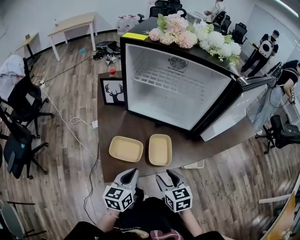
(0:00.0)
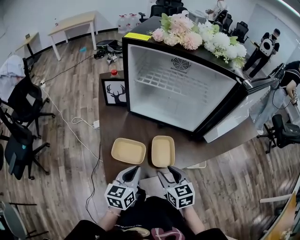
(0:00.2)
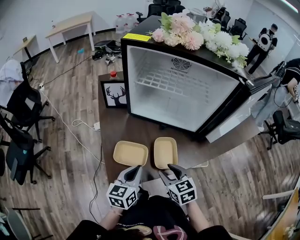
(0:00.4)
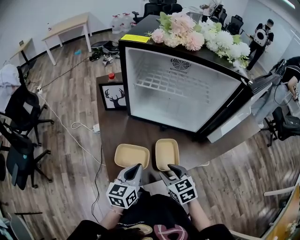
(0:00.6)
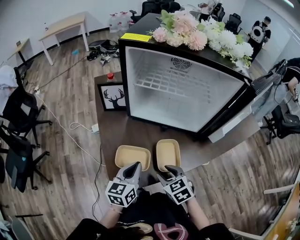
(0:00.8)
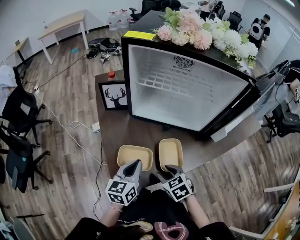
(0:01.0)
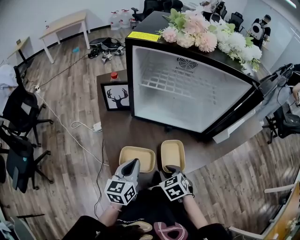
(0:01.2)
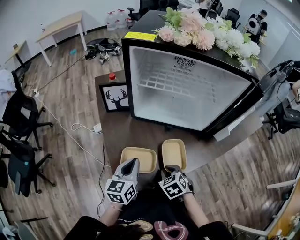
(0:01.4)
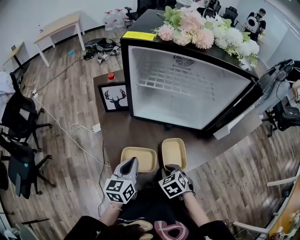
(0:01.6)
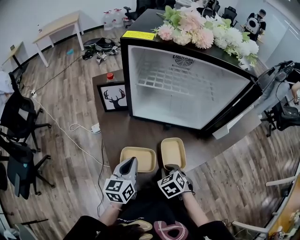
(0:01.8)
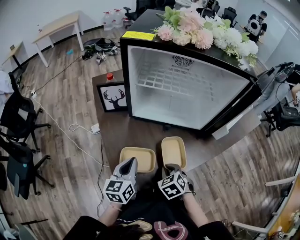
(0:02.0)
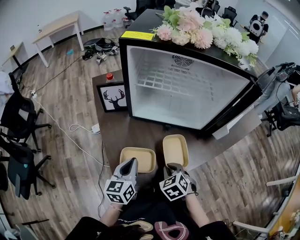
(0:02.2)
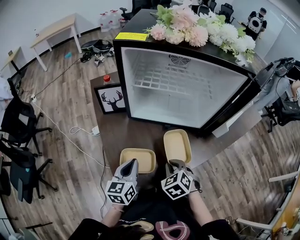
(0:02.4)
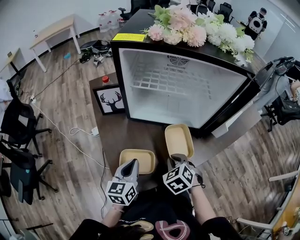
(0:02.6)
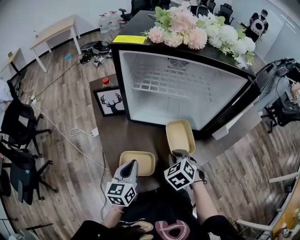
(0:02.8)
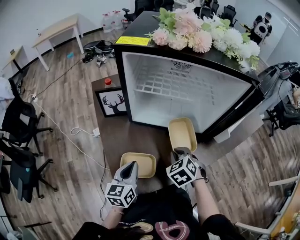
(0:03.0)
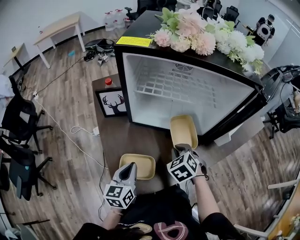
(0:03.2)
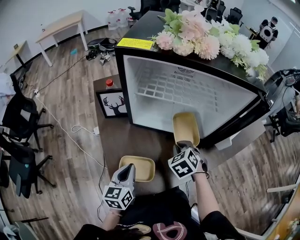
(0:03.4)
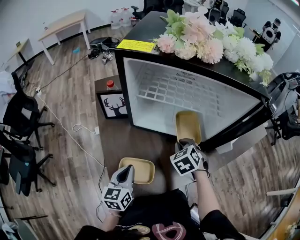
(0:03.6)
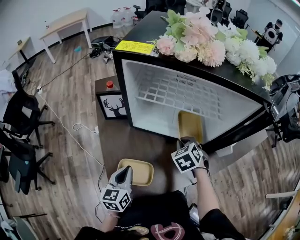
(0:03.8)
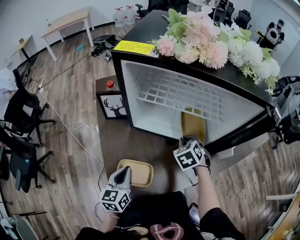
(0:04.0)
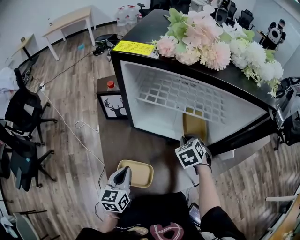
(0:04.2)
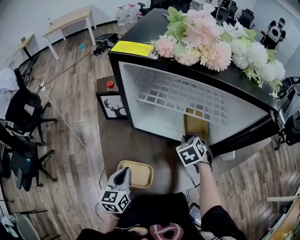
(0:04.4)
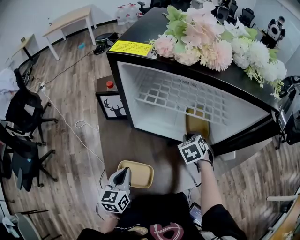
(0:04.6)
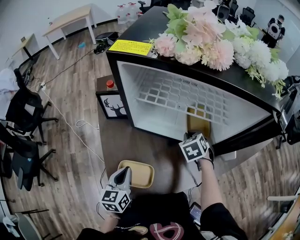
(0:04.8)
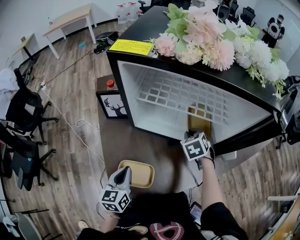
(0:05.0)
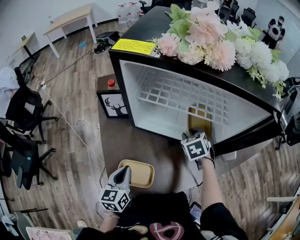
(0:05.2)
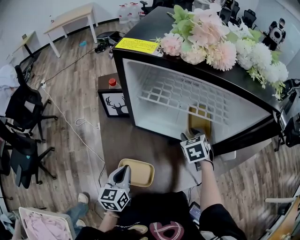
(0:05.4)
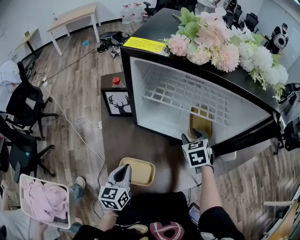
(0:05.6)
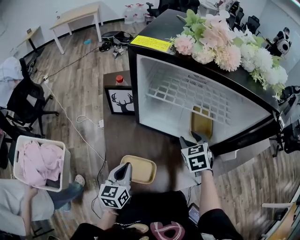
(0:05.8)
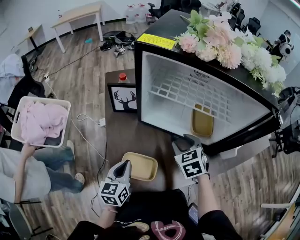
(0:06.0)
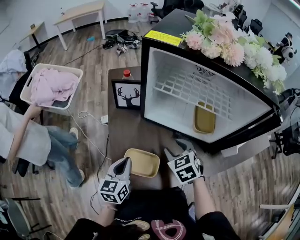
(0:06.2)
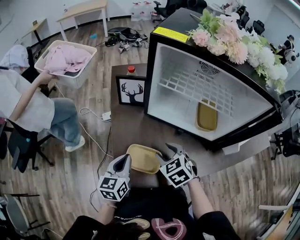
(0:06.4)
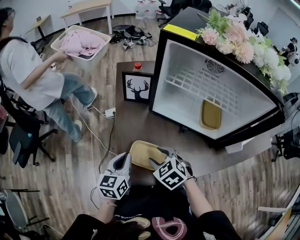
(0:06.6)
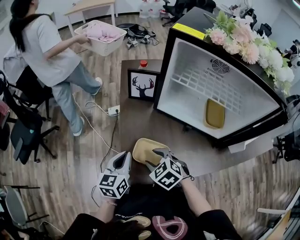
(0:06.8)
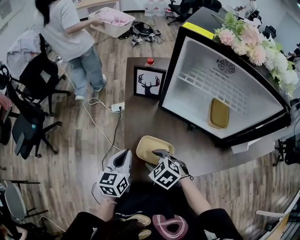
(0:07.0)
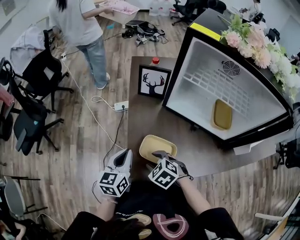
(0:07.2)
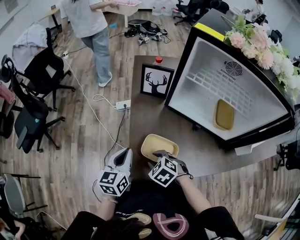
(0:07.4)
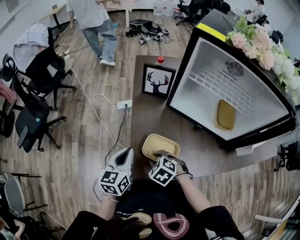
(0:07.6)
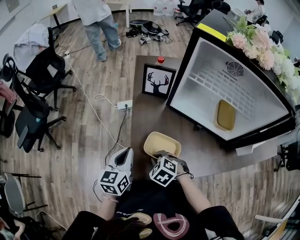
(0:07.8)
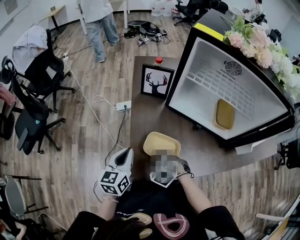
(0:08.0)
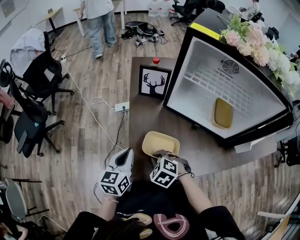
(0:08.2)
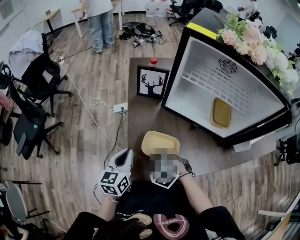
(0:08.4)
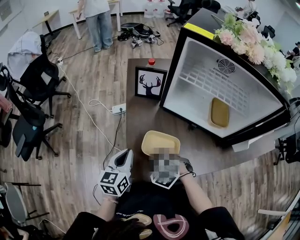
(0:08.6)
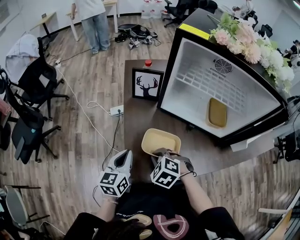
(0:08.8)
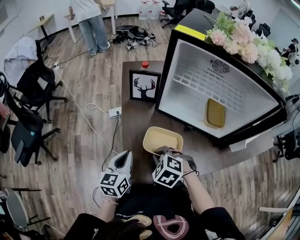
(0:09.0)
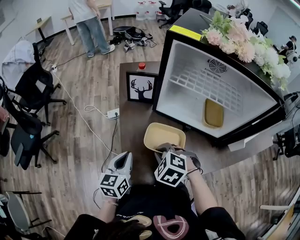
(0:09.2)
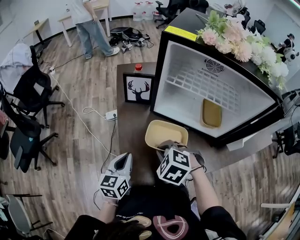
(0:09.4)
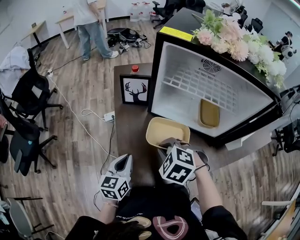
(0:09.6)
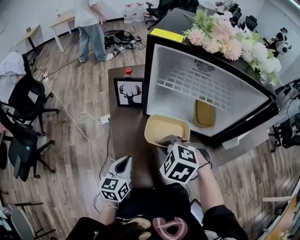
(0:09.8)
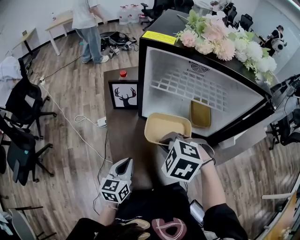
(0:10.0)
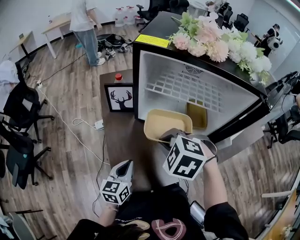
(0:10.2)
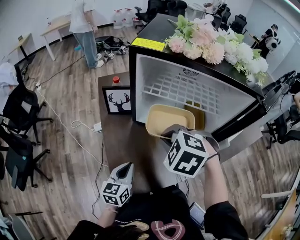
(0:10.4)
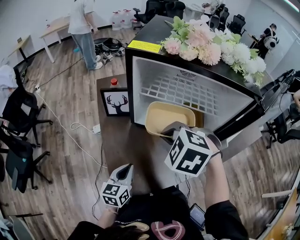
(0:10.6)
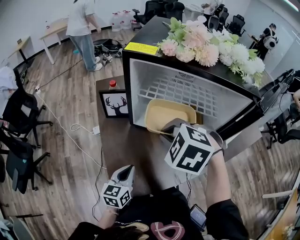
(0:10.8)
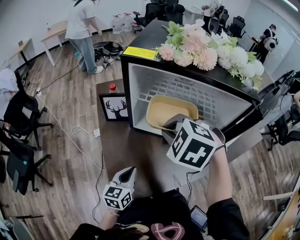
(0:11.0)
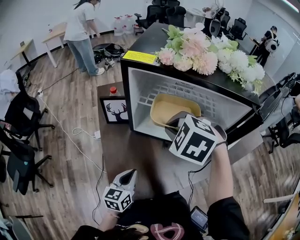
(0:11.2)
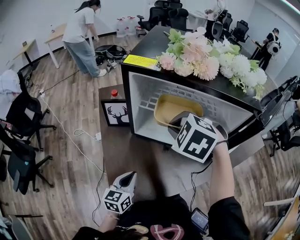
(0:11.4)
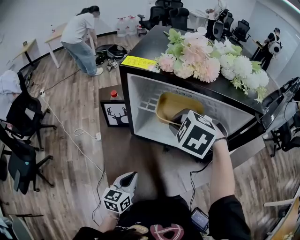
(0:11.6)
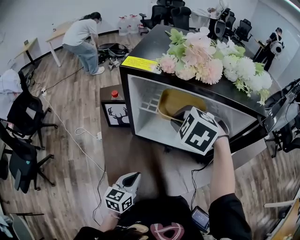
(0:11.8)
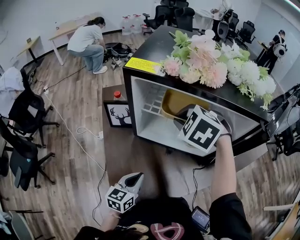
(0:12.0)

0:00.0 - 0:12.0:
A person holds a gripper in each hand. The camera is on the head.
0:00.0 - 0:01.6: The left gripper heads forward and to the left, covering about 15 cm, while the right gripper travels downward, forward and to the left by about 10 cm, changes its angle by roughly 30 degrees, and closes.
0:01.6 - 0:03.0: The right gripper goes roughly 10 cm forward and upward.
0:03.0 - 0:04.4: The right gripper is displaced forward by roughly 15 cm.
0:04.4 - 0:06.0: The right gripper heads to the left and backward, covering approximately 10 cm, and opens.
0:06.0 - 0:07.6: The right gripper moves roughly 30 cm, and turns by about 40 degrees. The left gripper shifts by roughly 10 cm.
0:07.6 - 0:09.0: The right gripper travels upward by approximately 10 cm, and closes up.
0:09.0 - 0:10.4: The right gripper goes approximately 20 cm upward and to the right. The left gripper moves to the right, about 10 cm.
0:10.4 - 0:12.0: The left gripper is displaced to the right by roughly 5 cm. Meanwhile the right gripper shifts about 15 cm forward and to the right.

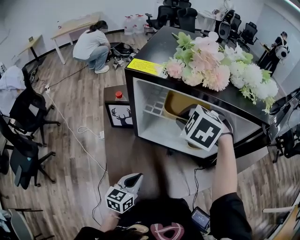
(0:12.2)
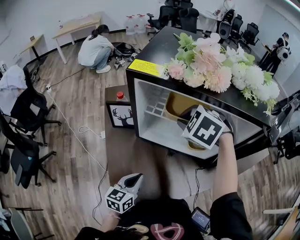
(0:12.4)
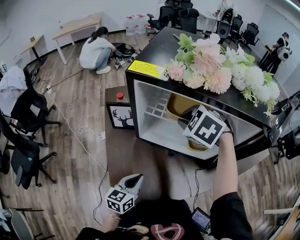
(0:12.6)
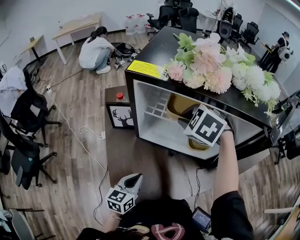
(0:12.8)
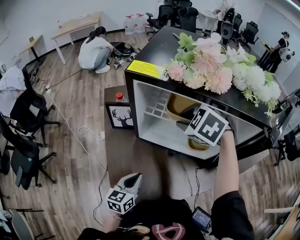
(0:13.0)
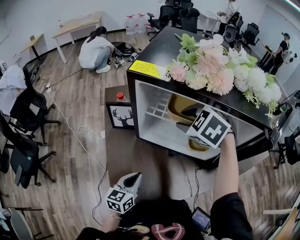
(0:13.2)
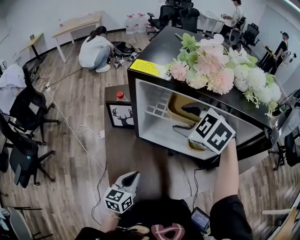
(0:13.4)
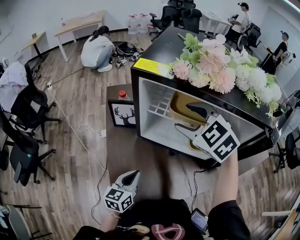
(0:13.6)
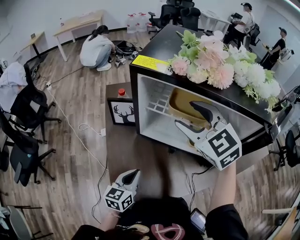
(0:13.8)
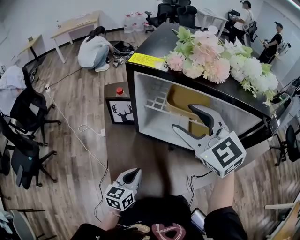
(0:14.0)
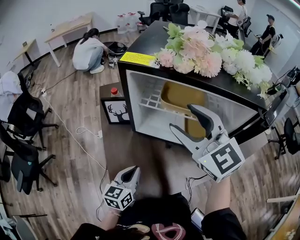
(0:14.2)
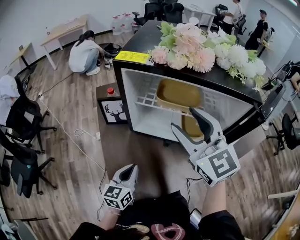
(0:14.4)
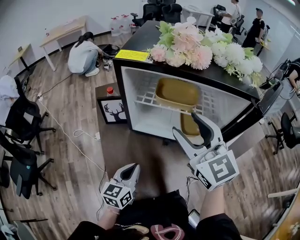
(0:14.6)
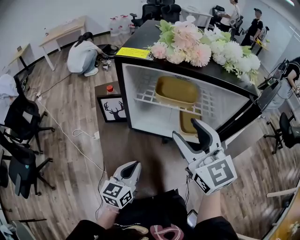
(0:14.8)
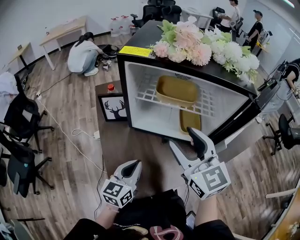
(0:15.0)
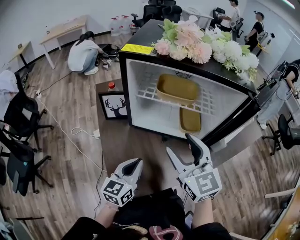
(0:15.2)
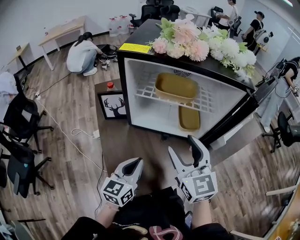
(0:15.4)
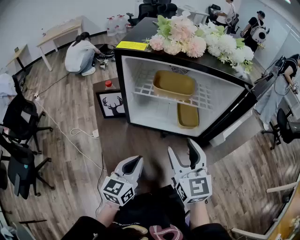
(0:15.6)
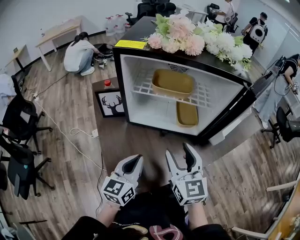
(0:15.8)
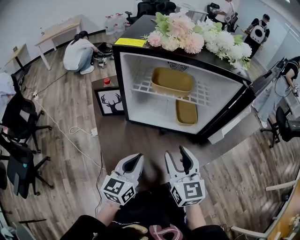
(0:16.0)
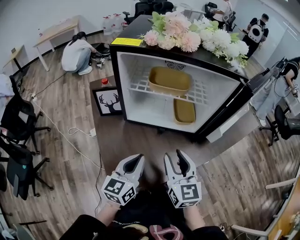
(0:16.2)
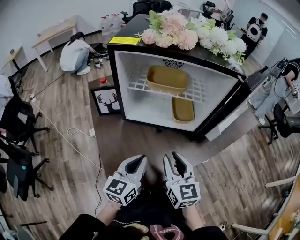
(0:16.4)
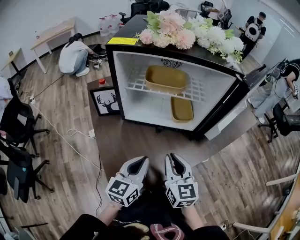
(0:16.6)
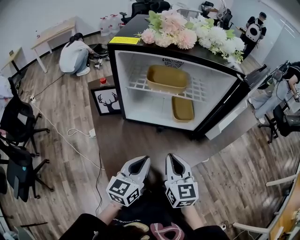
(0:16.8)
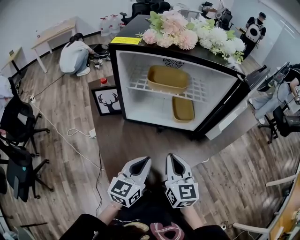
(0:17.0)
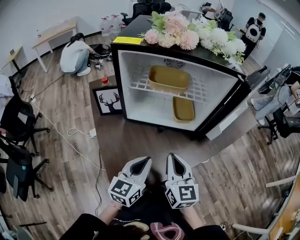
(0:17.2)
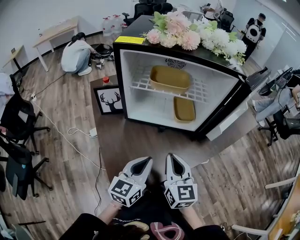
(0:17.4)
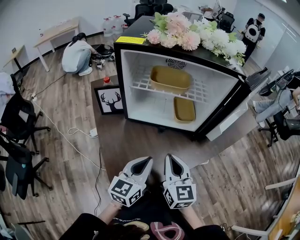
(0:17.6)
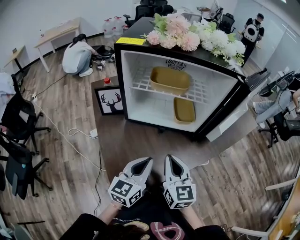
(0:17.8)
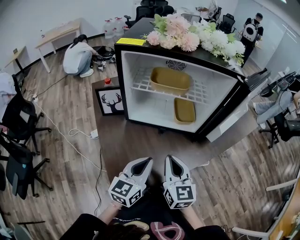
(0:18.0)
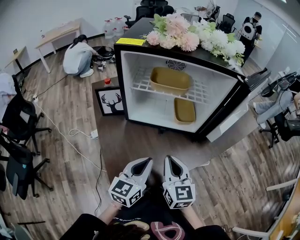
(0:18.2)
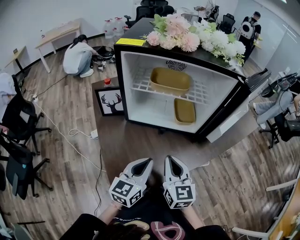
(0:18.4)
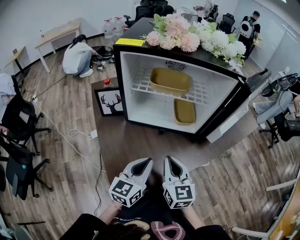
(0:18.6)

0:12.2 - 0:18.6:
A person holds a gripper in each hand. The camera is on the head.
0:12.2 - 0:13.8: The right gripper moves upward, about 5 cm, angles its fingers upward, by roughly 40 degrees, and opens.
0:13.8 - 0:15.4: The right gripper moves backward and downward, about 15 cm, and rotates approximately 30 degrees. Meanwhile the left gripper is displaced upward by some 5 cm.
0:15.4 - 0:17.0: The left gripper ends up about 5 cm from where it was; the right gripper moves downward and backward, approximately 10 cm, and closes up.
0:17.0 - 0:18.6: There are only small adjustments of the grippers.

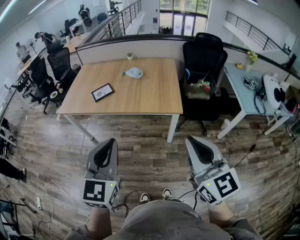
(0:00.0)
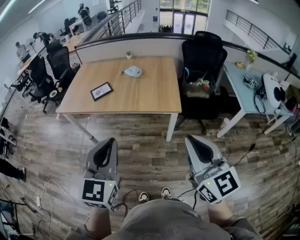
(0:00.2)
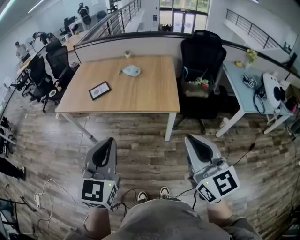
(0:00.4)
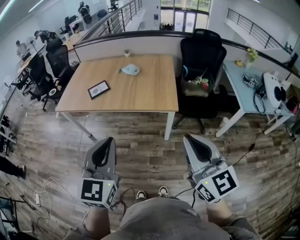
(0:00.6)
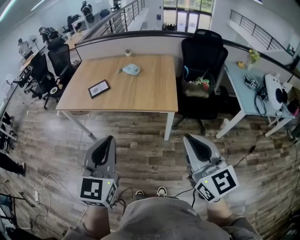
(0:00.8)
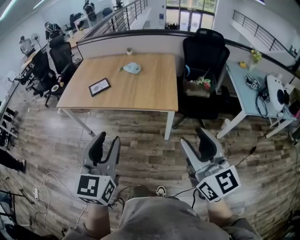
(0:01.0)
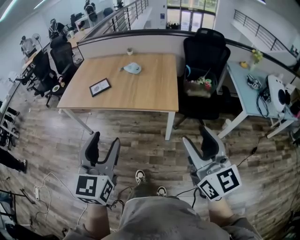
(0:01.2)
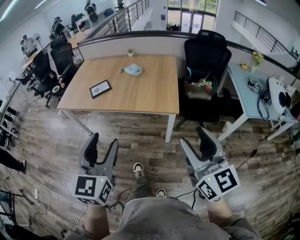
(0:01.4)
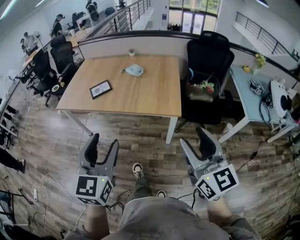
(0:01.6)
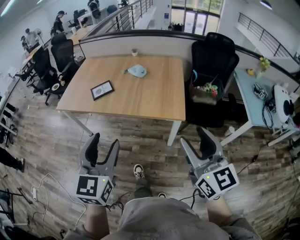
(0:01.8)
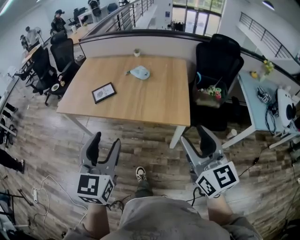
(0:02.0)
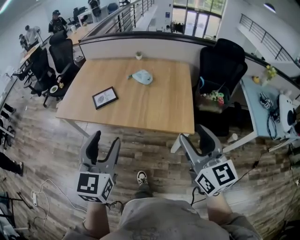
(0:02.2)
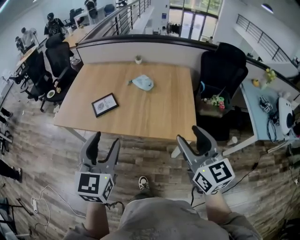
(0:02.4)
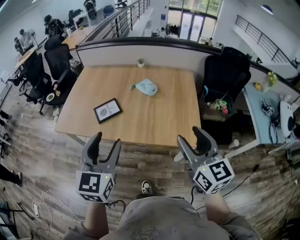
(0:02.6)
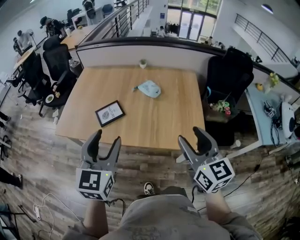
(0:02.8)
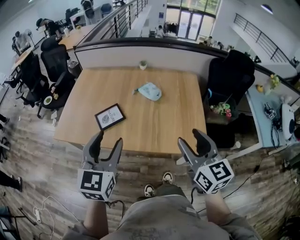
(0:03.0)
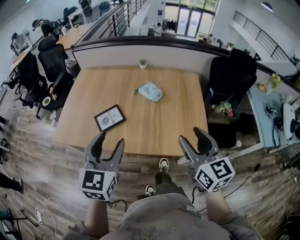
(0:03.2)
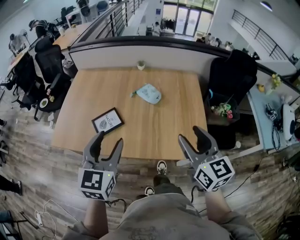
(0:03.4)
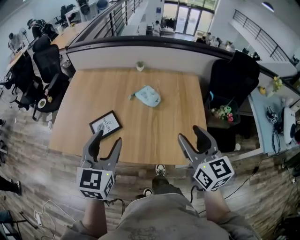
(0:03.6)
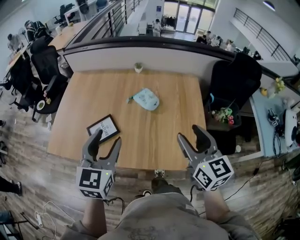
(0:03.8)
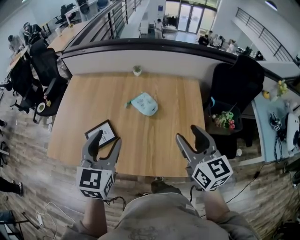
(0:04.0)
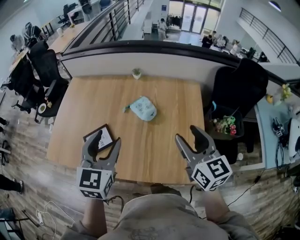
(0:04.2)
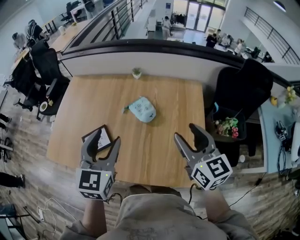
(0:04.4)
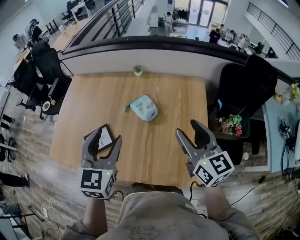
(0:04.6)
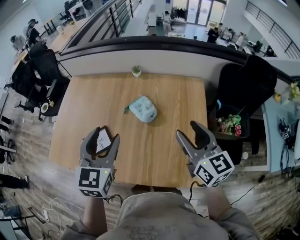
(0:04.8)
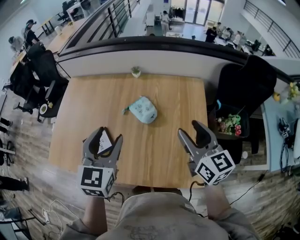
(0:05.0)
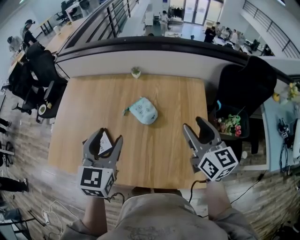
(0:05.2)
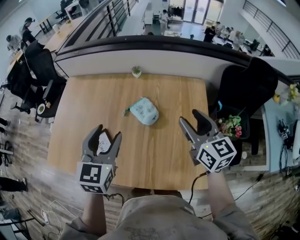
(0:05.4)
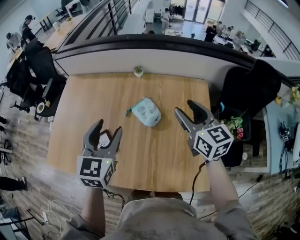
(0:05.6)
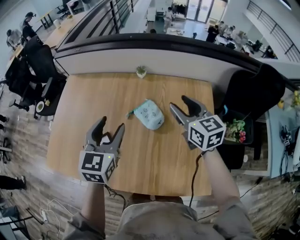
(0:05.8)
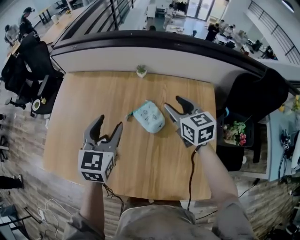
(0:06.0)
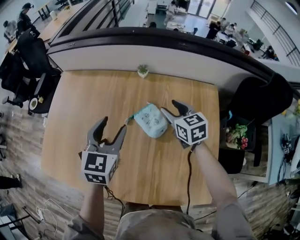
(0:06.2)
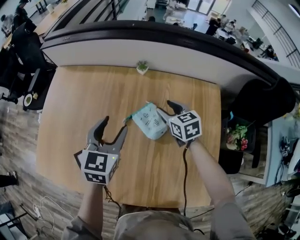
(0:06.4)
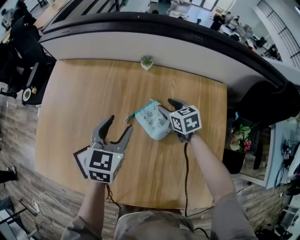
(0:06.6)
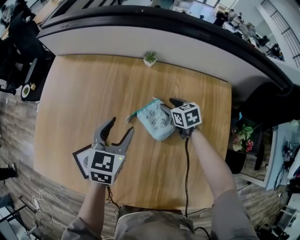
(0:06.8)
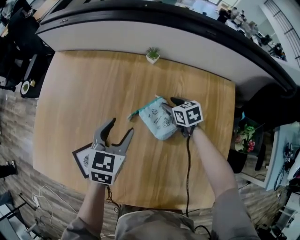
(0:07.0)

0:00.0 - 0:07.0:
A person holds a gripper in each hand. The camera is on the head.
0:00.0 - 0:01.4: The left gripper ends up approximately 5 cm from where it was, and opens. Meanwhile the right gripper travels to the right by some 10 cm, and opens up.
0:01.4 - 0:02.8: The grippers both shift forward and to the left by about 40 cm.
0:02.8 - 0:04.2: Both grippers travel together forward, approximately 25 cm.
0:04.2 - 0:05.6: The grippers both shift forward by some 15 cm.
0:05.6 - 0:07.0: The right gripper moves downward and forward, about 40 cm, and tips its fingers downward by about 30 degrees, while the left gripper moves downward and forward, roughly 25 cm.
